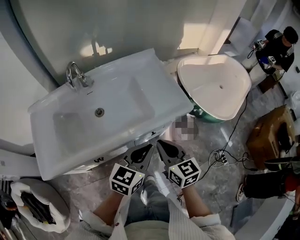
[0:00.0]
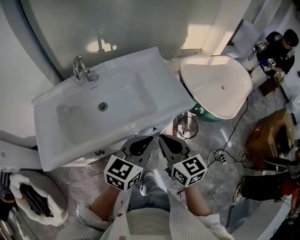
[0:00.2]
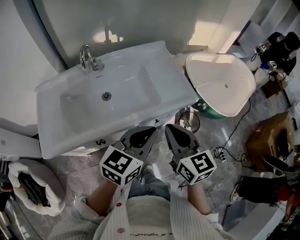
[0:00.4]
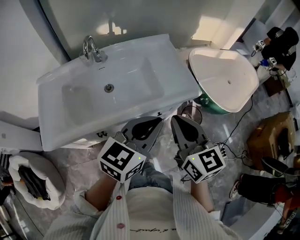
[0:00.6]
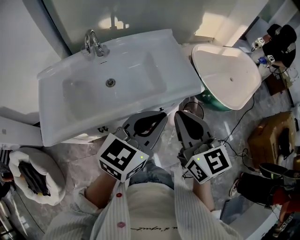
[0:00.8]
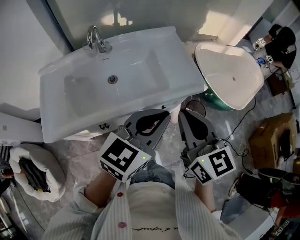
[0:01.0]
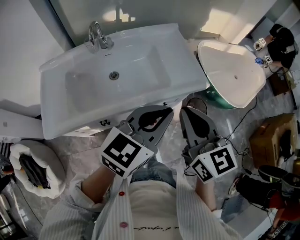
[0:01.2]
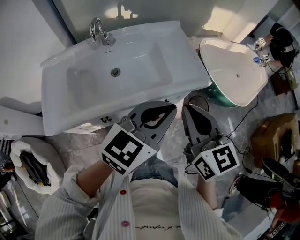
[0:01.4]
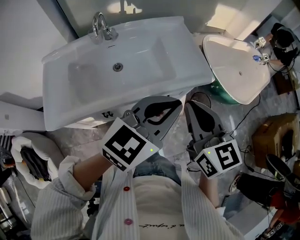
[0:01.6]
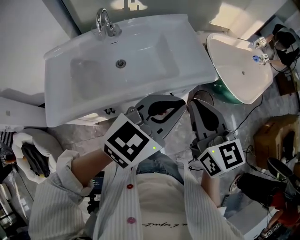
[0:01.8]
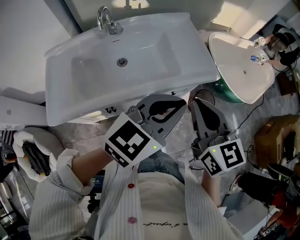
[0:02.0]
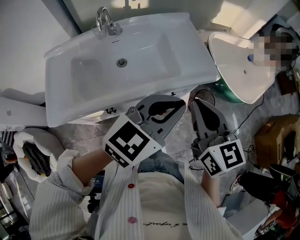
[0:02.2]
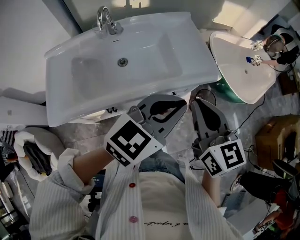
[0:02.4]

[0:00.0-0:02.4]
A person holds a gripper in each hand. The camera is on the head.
0:00.0 to 0:01.2: Both grippers move upward, approximately 15 cm.
0:01.2 to 0:02.4: The grippers move only a little.

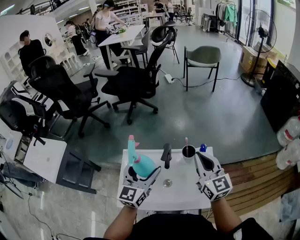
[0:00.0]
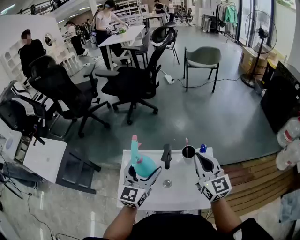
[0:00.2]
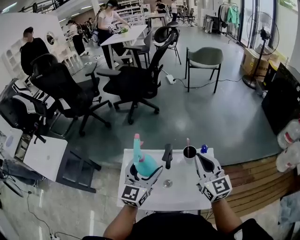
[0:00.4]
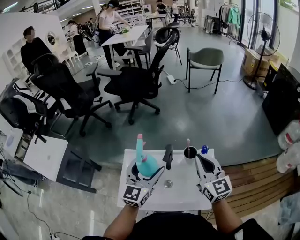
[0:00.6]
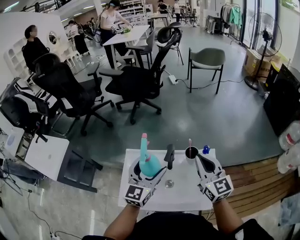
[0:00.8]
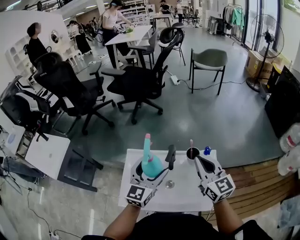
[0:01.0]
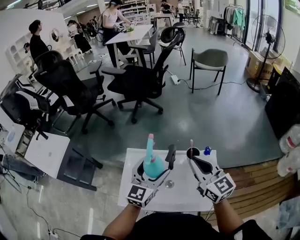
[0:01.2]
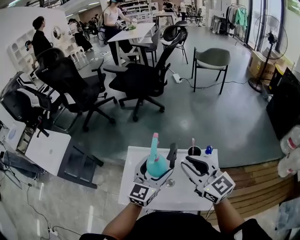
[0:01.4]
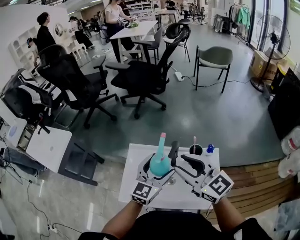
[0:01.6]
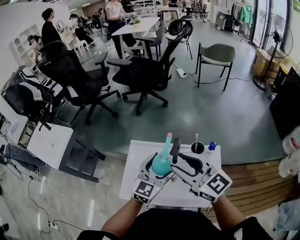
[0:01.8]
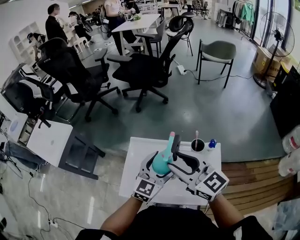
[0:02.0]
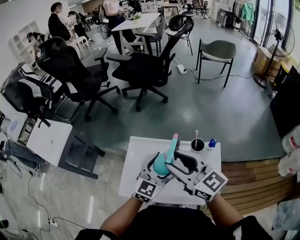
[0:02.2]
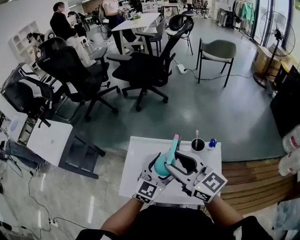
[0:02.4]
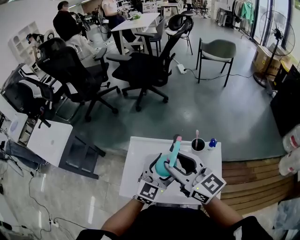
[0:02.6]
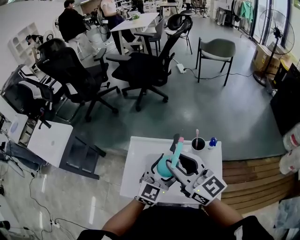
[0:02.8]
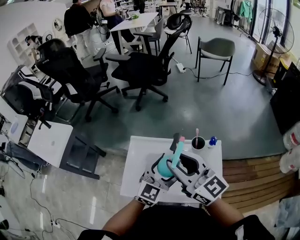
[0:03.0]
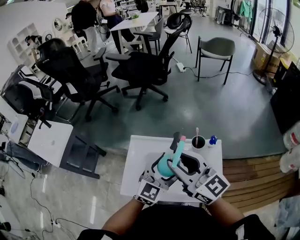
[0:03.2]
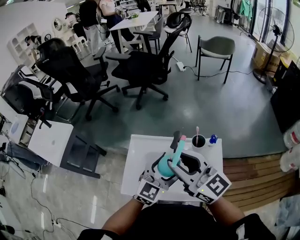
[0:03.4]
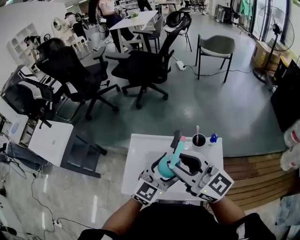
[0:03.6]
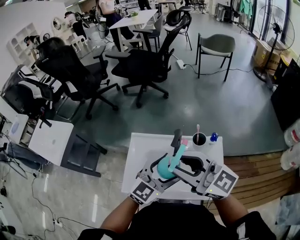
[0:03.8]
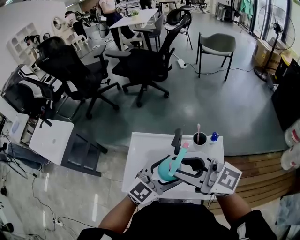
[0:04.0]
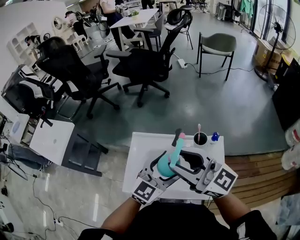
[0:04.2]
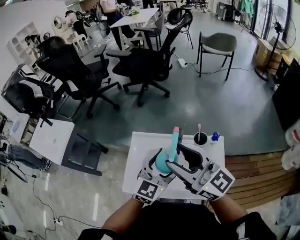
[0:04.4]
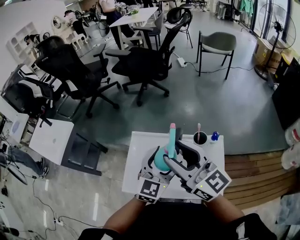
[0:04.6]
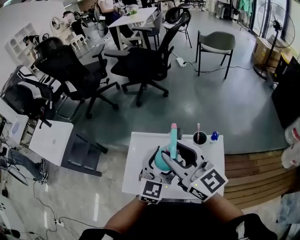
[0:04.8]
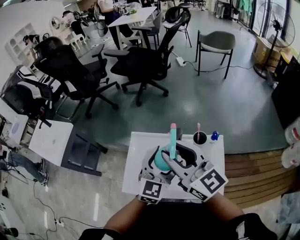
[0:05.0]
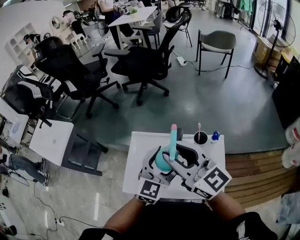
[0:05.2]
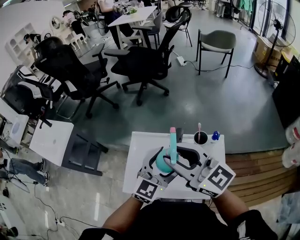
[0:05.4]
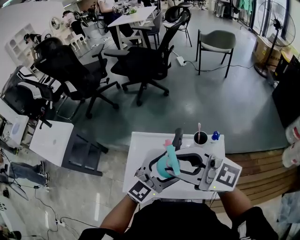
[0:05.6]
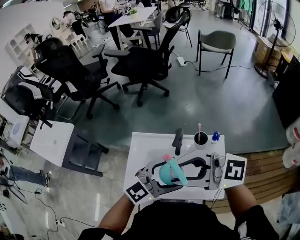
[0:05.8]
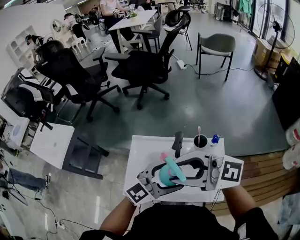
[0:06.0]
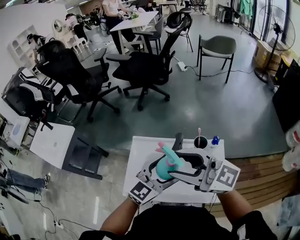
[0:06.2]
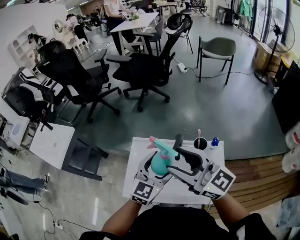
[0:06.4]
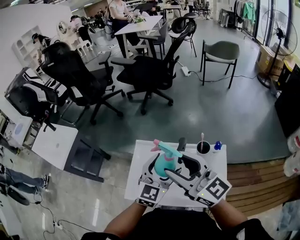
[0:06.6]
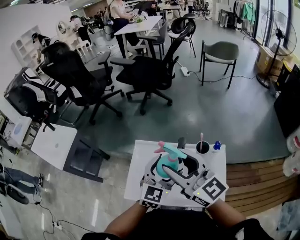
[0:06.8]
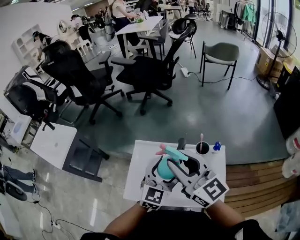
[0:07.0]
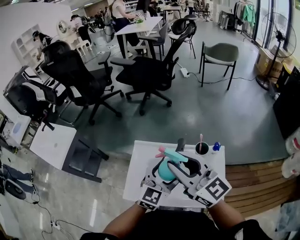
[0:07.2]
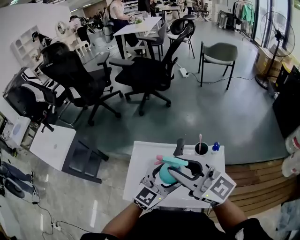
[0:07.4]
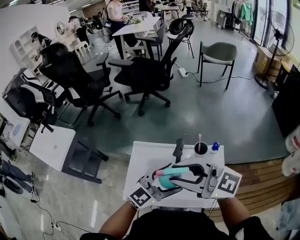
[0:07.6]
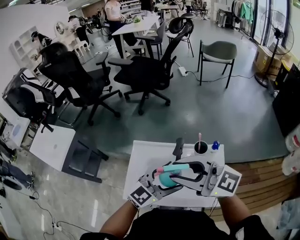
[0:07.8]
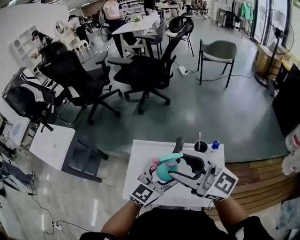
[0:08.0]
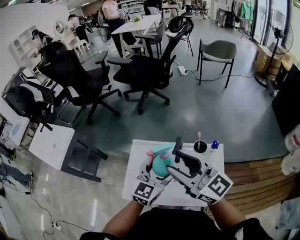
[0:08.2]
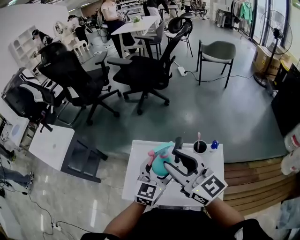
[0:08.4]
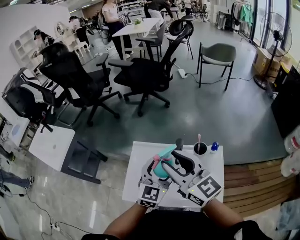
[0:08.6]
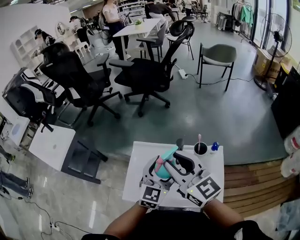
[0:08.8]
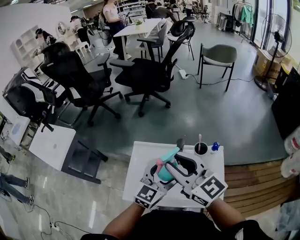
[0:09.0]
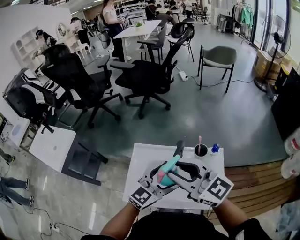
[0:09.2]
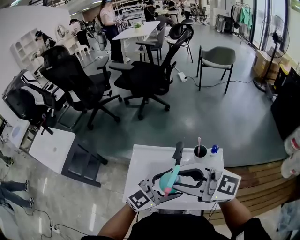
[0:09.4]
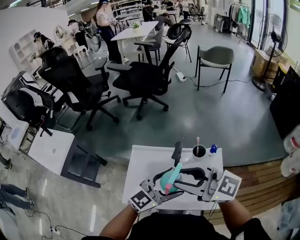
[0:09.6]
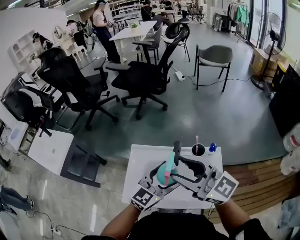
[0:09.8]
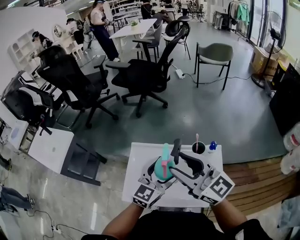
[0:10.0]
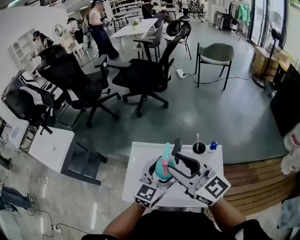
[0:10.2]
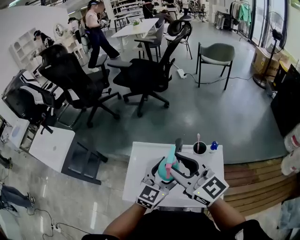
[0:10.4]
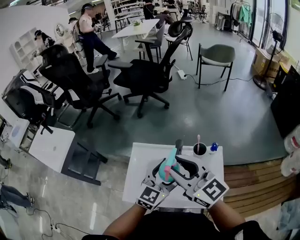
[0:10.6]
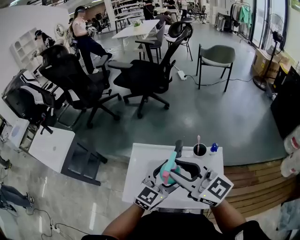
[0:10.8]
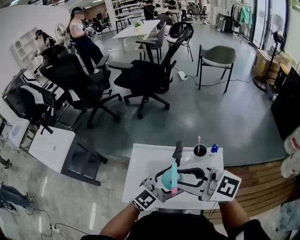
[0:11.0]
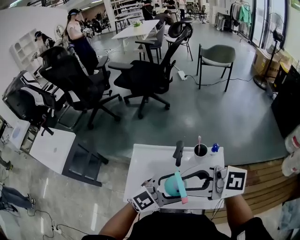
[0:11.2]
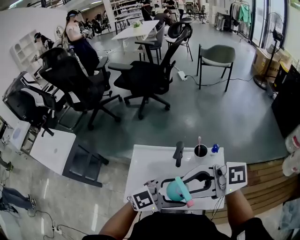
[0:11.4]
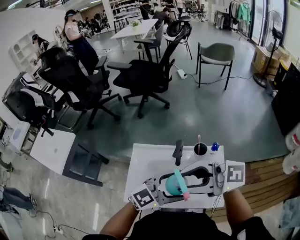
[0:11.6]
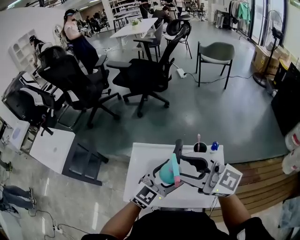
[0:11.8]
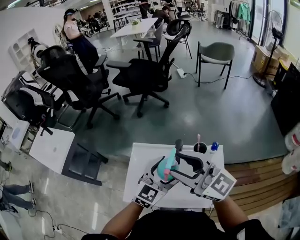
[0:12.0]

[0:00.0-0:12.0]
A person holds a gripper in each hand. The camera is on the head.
0:00.0 to 0:01.6: The right gripper travels to the left by about 10 cm, turns by some 30 degrees, and opens up.
0:01.6 to 0:03.0: There are only small adjustments of the grippers.
0:04.4 to 0:06.0: The right gripper ends up about 5 cm from where it was, and changes its angle by about 30 degrees. Meanwhile the left gripper moves some 5 cm, and changes its angle by approximately 30 degrees.
0:06.0 to 0:07.6: The right gripper opens, then closes again.
0:07.6 to 0:09.0: The left gripper swivels approximately 20 degrees; the right gripper moves roughly 5 cm, changes its angle by some 30 degrees, and opens, then closes once more.

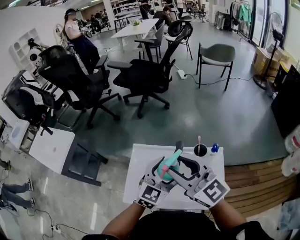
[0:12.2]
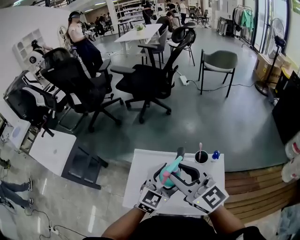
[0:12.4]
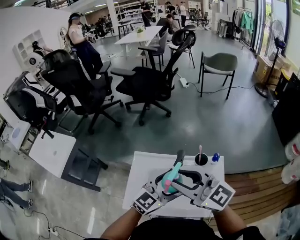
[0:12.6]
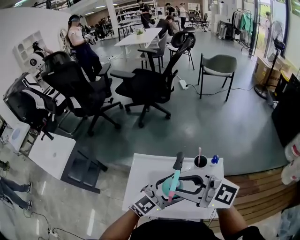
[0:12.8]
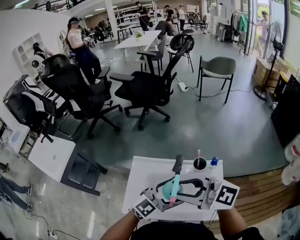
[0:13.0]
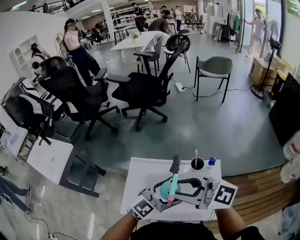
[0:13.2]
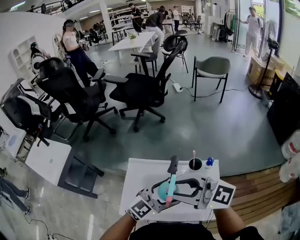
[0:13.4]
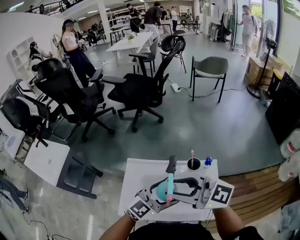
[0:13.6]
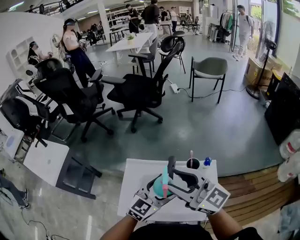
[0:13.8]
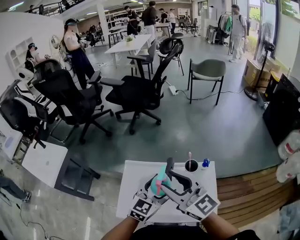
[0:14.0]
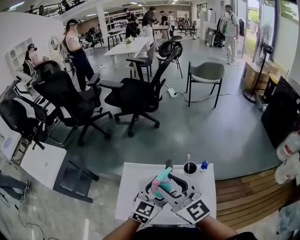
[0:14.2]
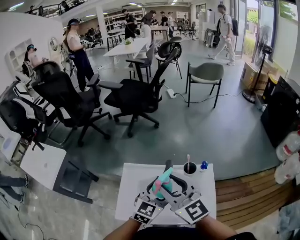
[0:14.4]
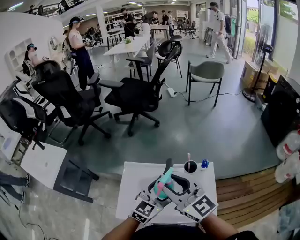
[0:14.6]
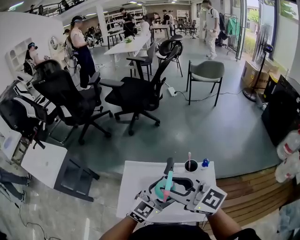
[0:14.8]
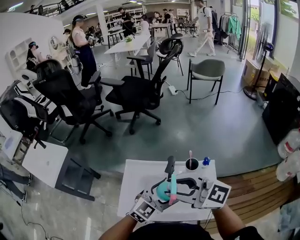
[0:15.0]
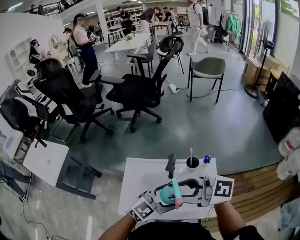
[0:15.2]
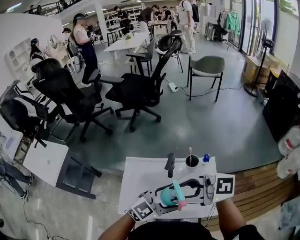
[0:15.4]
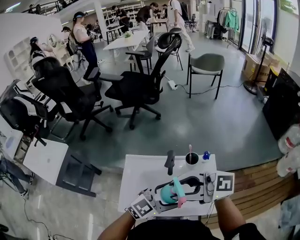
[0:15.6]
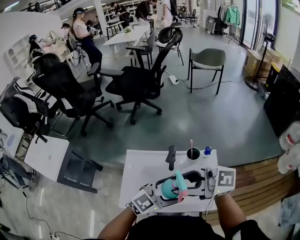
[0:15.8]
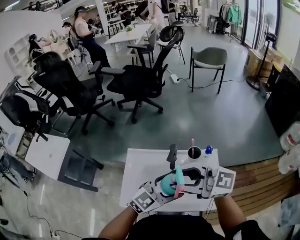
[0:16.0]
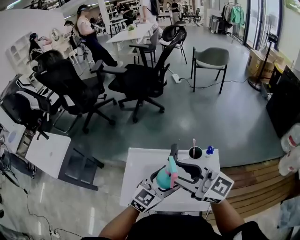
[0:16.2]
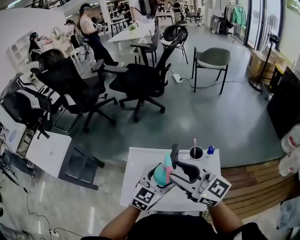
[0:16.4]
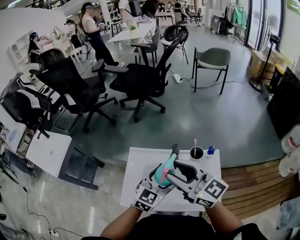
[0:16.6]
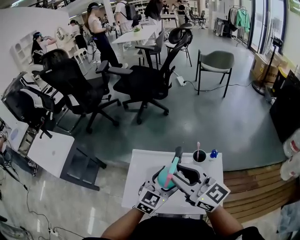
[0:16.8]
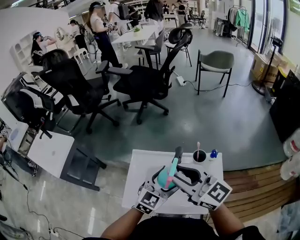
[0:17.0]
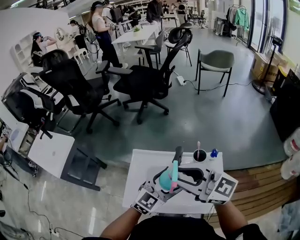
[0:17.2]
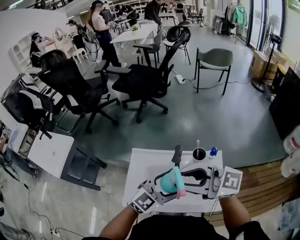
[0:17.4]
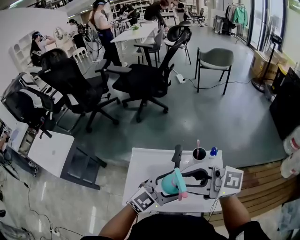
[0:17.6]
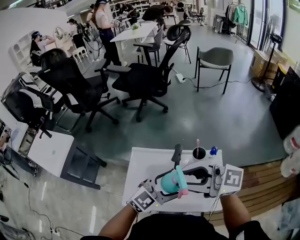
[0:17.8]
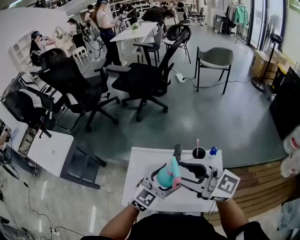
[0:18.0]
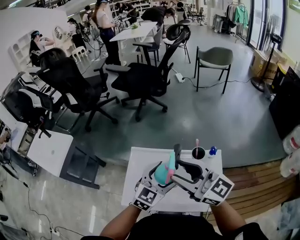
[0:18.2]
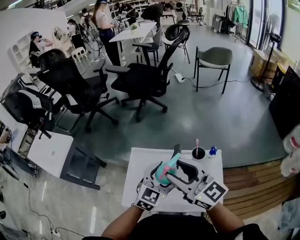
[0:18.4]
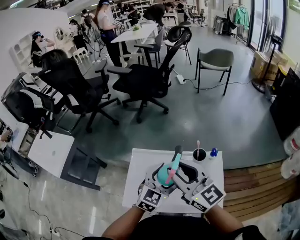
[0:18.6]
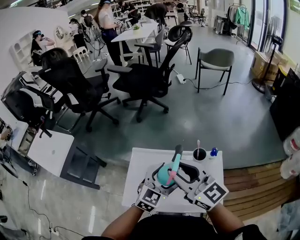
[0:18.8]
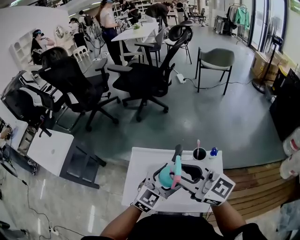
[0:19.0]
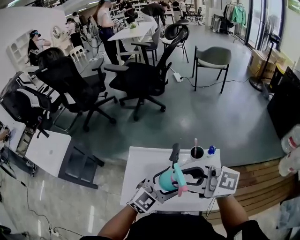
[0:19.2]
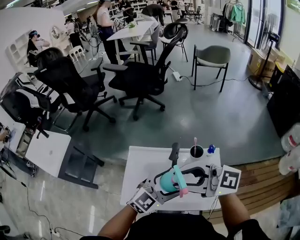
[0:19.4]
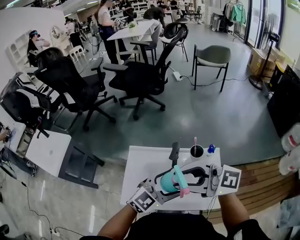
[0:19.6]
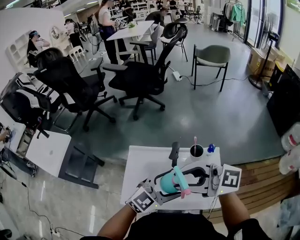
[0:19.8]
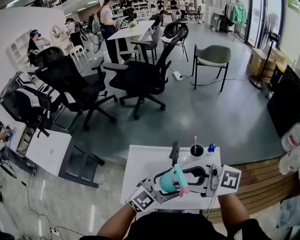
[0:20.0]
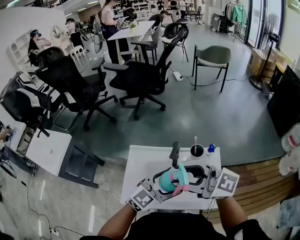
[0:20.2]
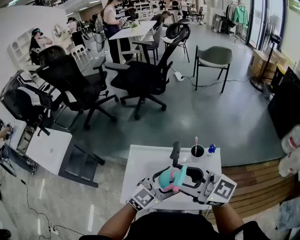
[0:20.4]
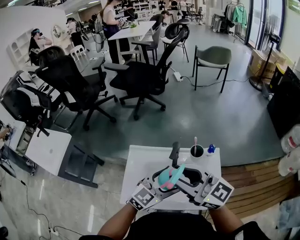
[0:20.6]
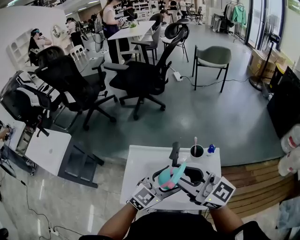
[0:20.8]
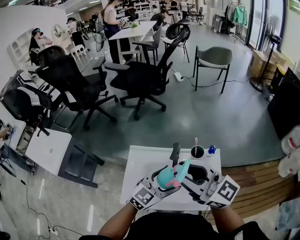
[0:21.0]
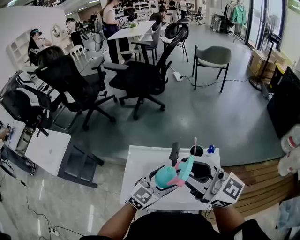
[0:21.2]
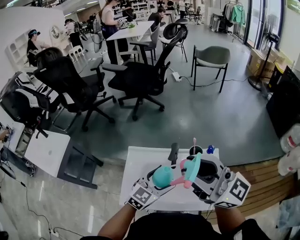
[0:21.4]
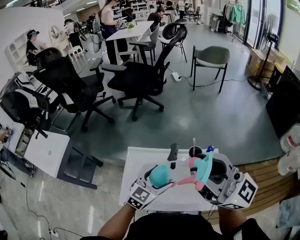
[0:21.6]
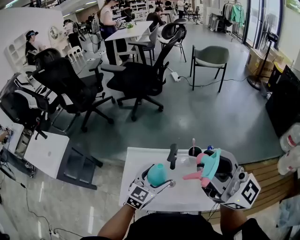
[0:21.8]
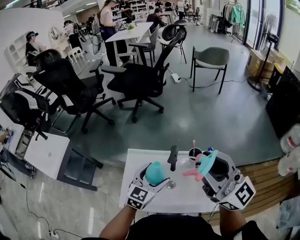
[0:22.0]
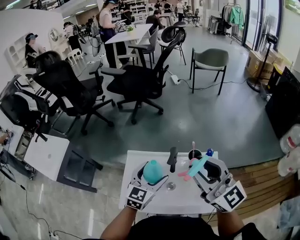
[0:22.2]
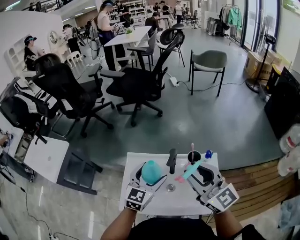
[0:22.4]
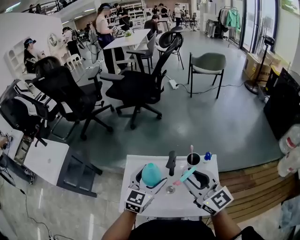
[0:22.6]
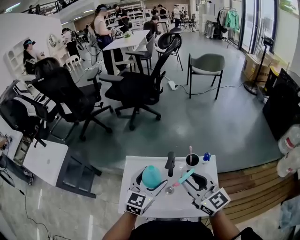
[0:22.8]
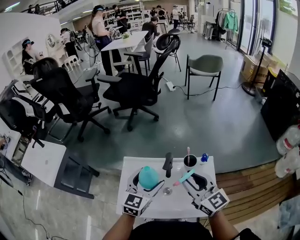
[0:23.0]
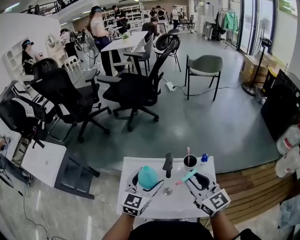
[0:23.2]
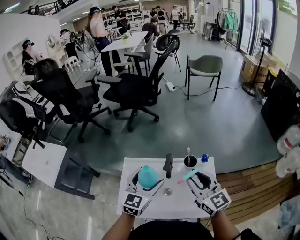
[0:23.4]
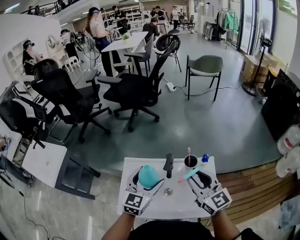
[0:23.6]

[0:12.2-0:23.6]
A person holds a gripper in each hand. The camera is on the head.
0:12.2 to 0:13.6: The right gripper swivels approximately 20 degrees; the left gripper changes place by approximately 5 cm, and rotates some 20 degrees.
0:15.0 to 0:16.4: The grippers stay close to where they were, moving slightly.
0:16.4 to 0:17.8: The right gripper shifts by approximately 5 cm, and rotates about 30 degrees. Meanwhile the left gripper changes place by approximately 5 cm, and swivels about 20 degrees.
0:19.4 to 0:20.8: The right gripper changes its angle by approximately 30 degrees.
0:20.8 to 0:22.2: The left gripper moves forward and to the left, roughly 10 cm, and rotates roughly 20 degrees, while the right gripper moves to the right, roughly 5 cm, travels upward and back again, some 10 cm each way, and rotates some 20 degrees.
0:22.2 to 0:23.6: The right gripper moves downward, about 10 cm.
